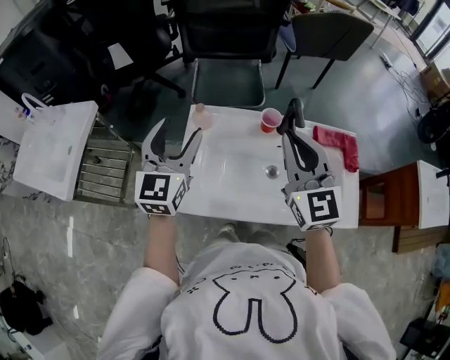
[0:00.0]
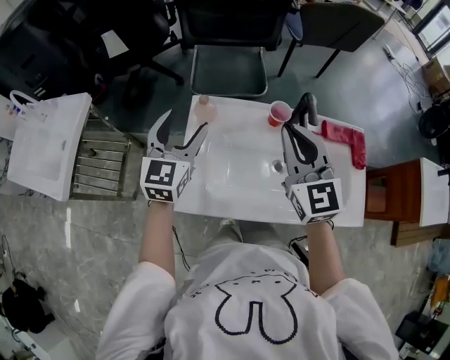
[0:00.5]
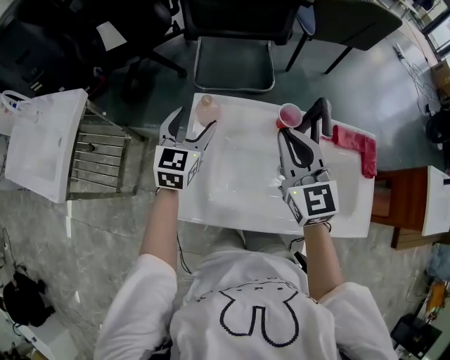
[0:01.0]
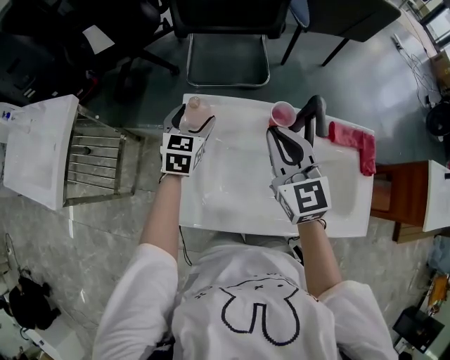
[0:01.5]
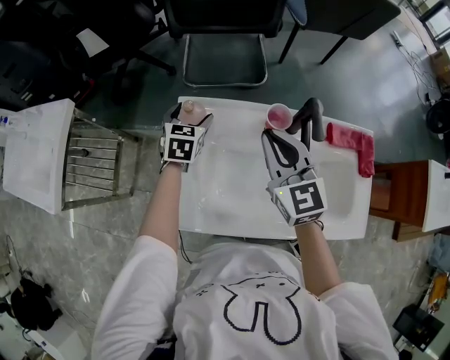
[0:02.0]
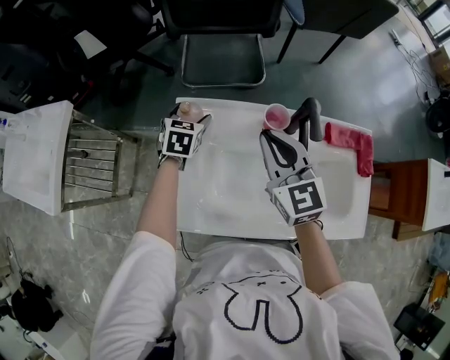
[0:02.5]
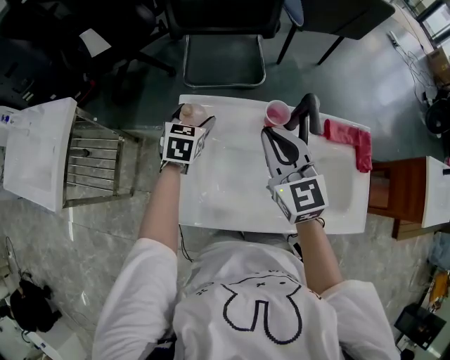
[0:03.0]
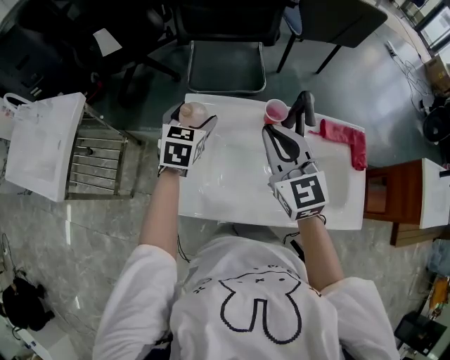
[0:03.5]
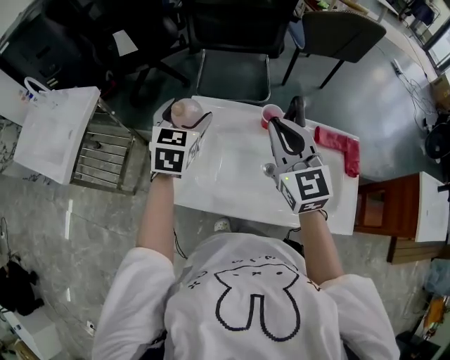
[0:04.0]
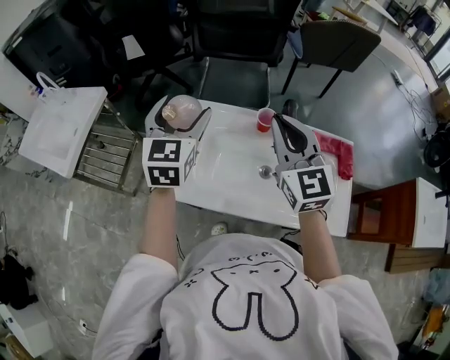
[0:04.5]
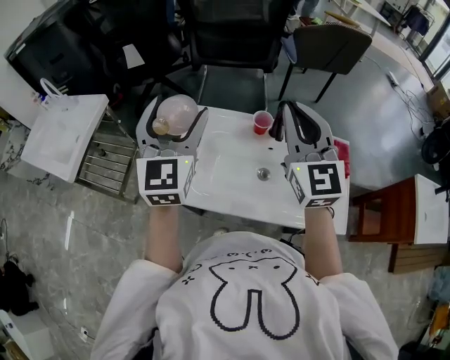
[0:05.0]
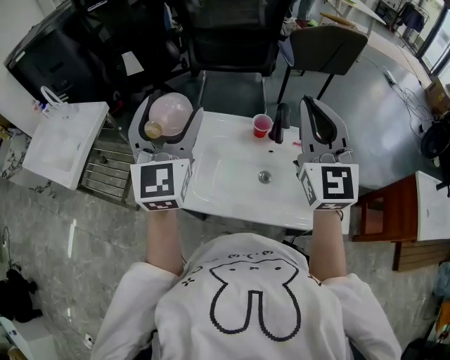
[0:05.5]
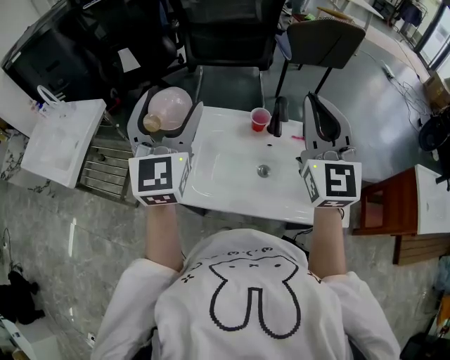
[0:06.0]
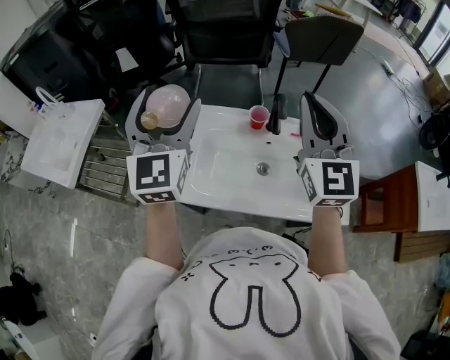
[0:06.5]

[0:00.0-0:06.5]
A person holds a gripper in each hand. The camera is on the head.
0:00.0 to 0:02.0: The right gripper goes approximately 15 cm downward and forward, while the left gripper goes roughly 30 cm downward and forward, and tilts its fingers roughly 30 degrees downward.
0:02.0 to 0:04.5: The right gripper is displaced upward and backward by some 15 cm. The left gripper shifts approximately 30 cm upward and backward, and swivels roughly 30 degrees.
0:04.5 to 0:06.5: The left gripper travels upward and backward by roughly 10 cm; the right gripper is displaced upward and to the right by some 10 cm.

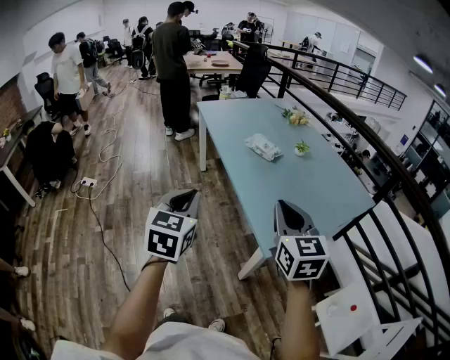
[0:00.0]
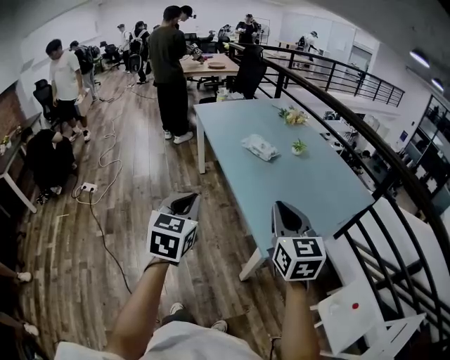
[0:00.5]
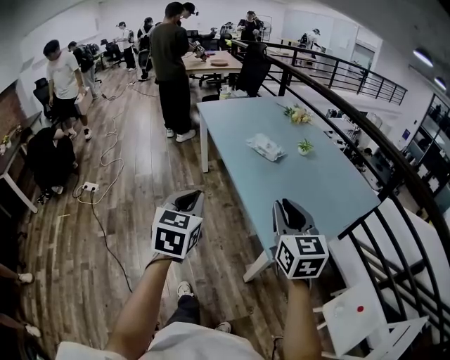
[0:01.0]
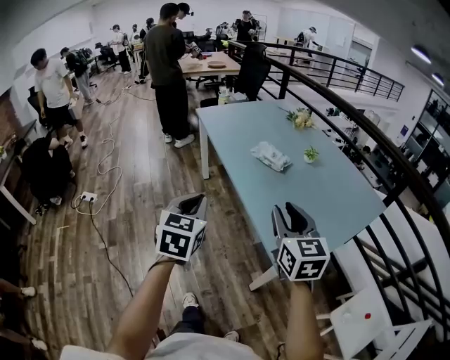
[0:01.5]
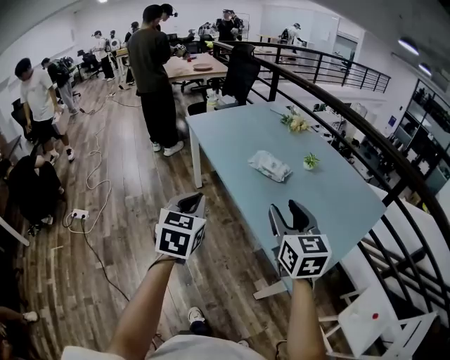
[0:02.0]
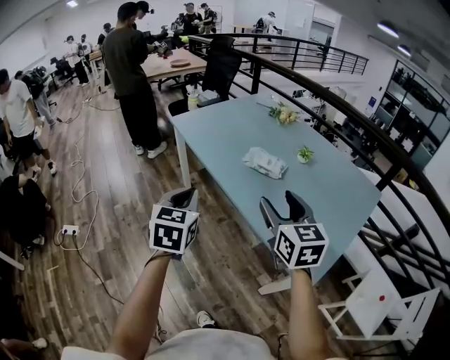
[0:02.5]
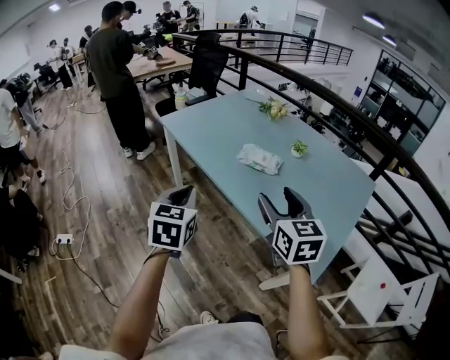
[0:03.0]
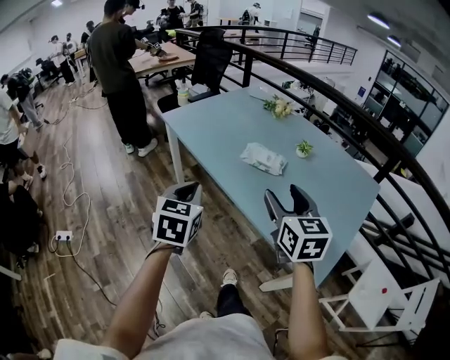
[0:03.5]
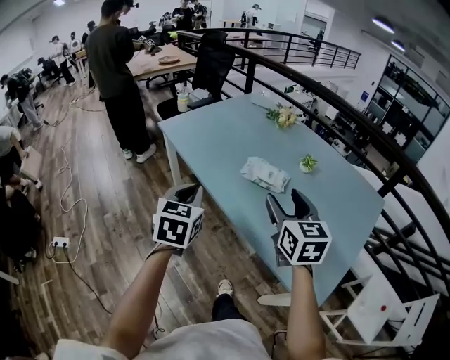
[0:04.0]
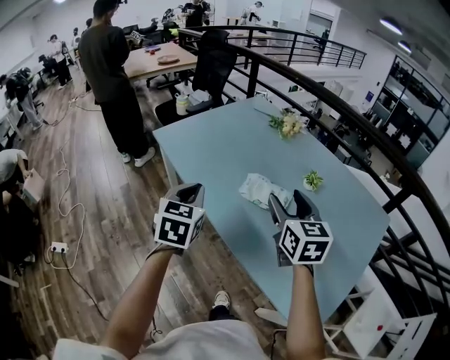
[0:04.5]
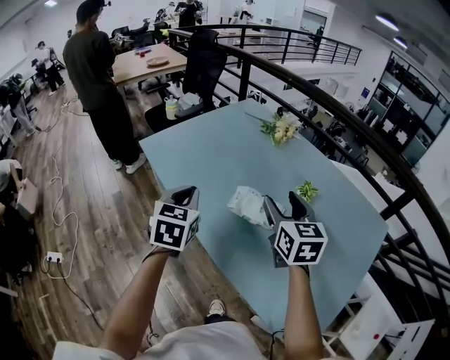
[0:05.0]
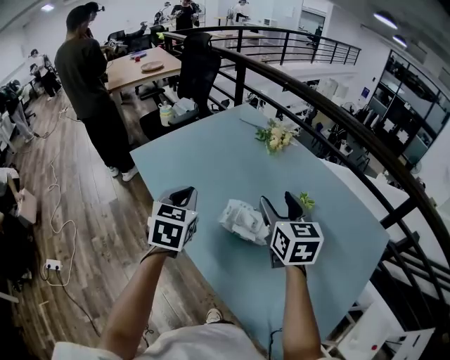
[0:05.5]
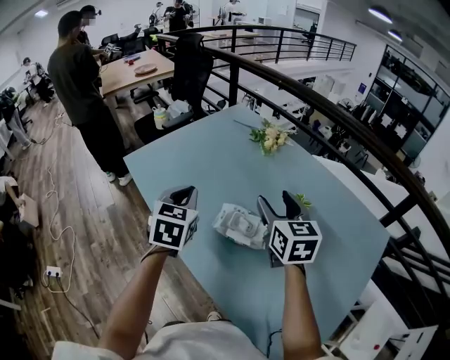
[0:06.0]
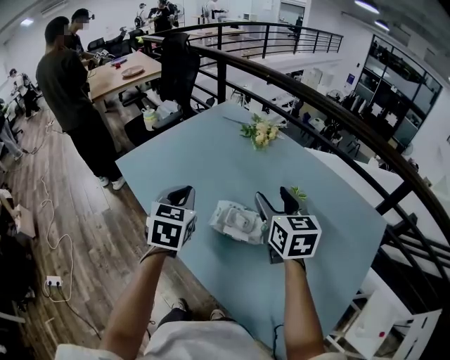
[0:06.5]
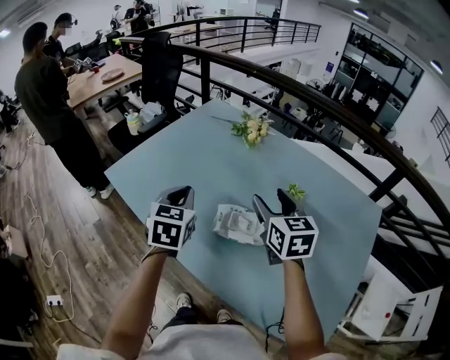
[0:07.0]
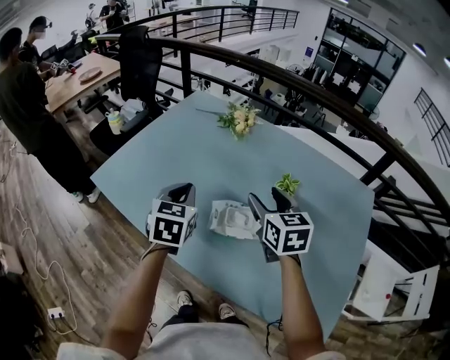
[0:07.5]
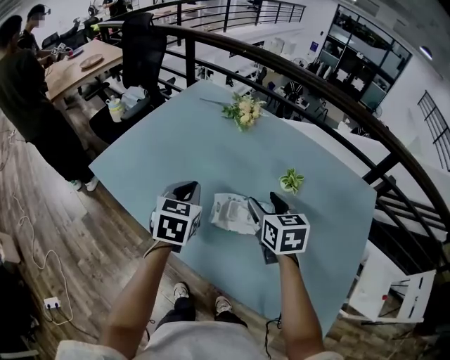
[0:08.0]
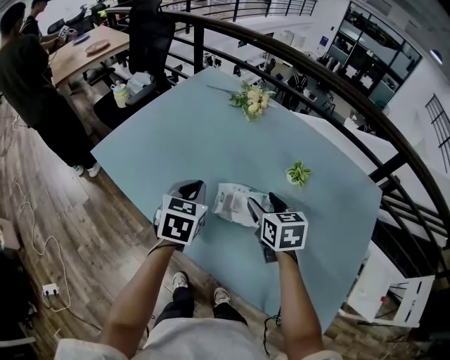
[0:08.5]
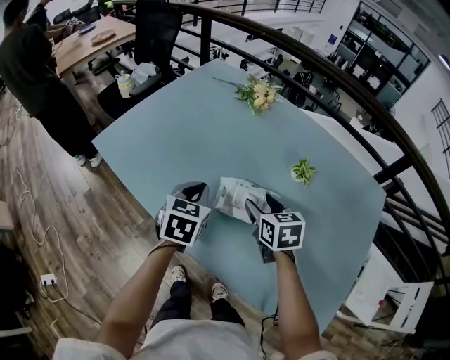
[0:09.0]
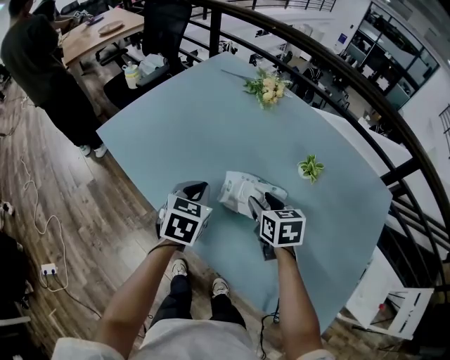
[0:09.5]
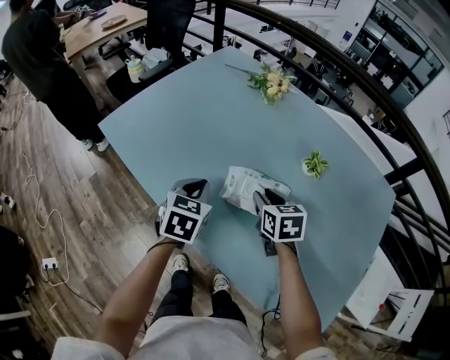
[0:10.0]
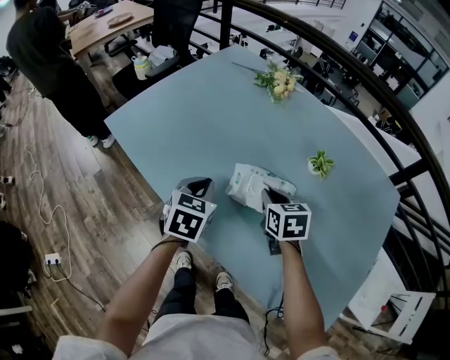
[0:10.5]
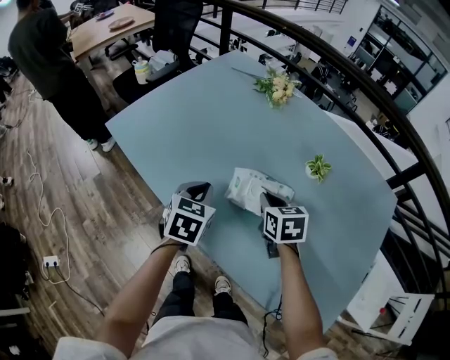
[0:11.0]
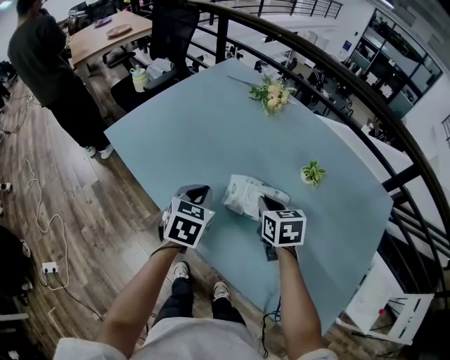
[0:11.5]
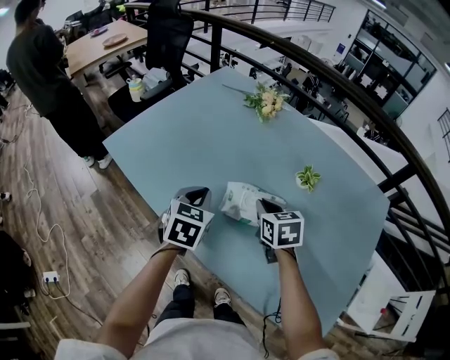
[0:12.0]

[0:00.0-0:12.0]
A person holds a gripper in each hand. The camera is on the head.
0:00.0 to 0:02.0: The grippers both shift forward by about 20 cm. The right gripper opens up.
0:02.0 to 0:04.0: Both grippers travel together forward, roughly 15 cm.
0:04.0 to 0:06.0: The two grippers go roughly 25 cm forward.
0:06.0 to 0:08.0: The right gripper shifts roughly 10 cm downward. Meanwhile the left gripper moves downward and forward, about 10 cm.
0:08.0 to 0:10.0: The two grippers go roughly 10 cm downward. The right gripper closes.
0:10.0 to 0:12.0: The right gripper closes.

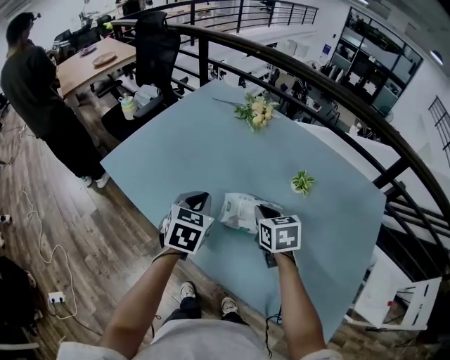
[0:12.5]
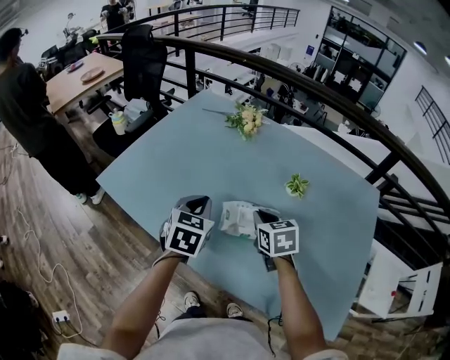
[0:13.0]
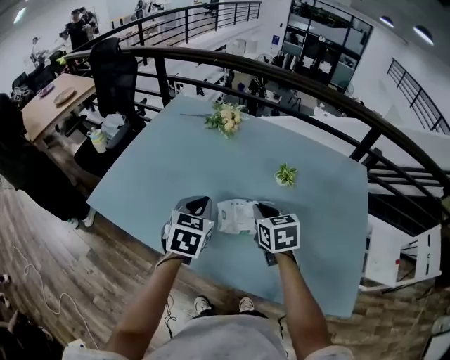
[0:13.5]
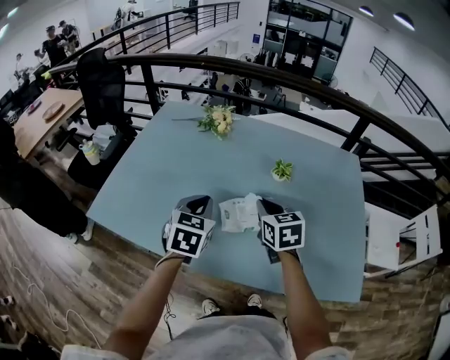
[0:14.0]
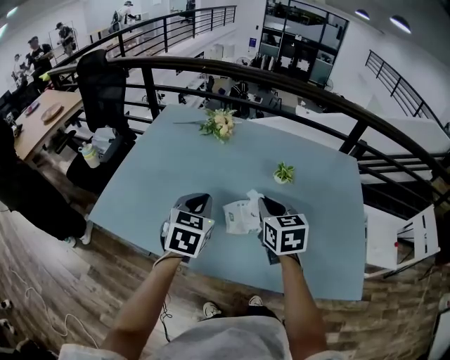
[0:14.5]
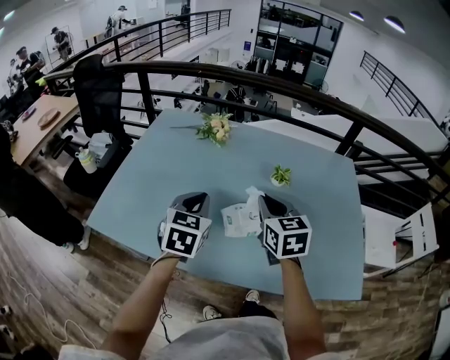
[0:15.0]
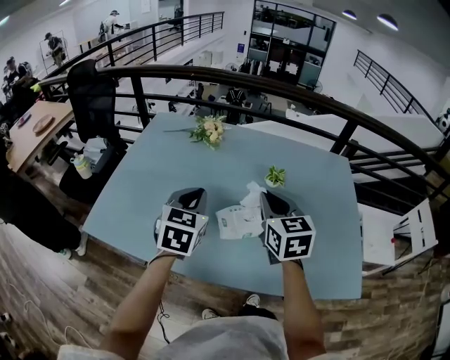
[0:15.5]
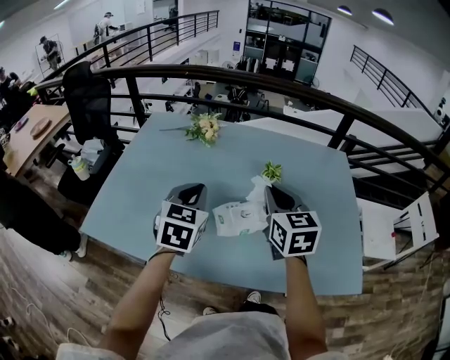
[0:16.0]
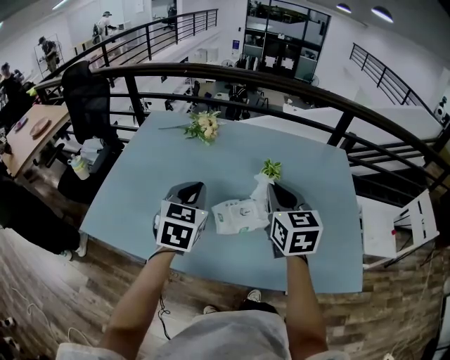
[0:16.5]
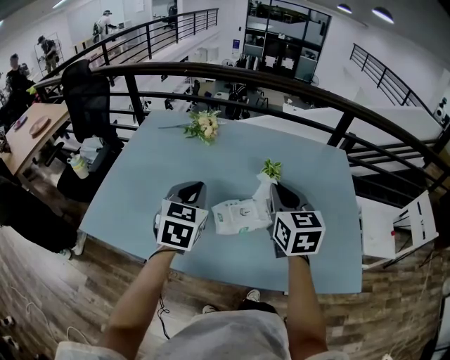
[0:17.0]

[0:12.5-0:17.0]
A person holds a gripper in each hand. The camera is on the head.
0:12.5 to 0:14.5: The right gripper is displaced upward by approximately 10 cm, and swivels approximately 30 degrees. Meanwhile the left gripper shifts by approximately 5 cm, and swivels roughly 20 degrees.
0:14.5 to 0:17.0: The right gripper travels upward and to the right by some 10 cm.

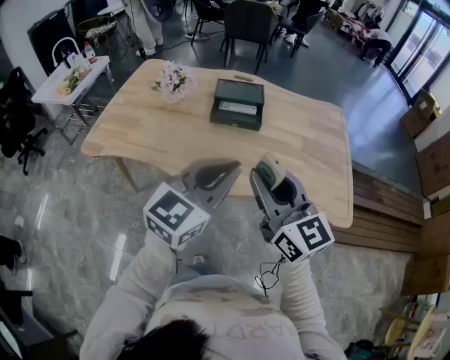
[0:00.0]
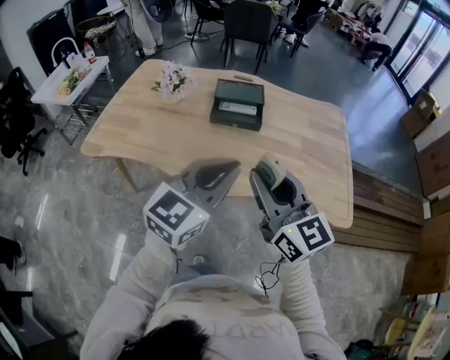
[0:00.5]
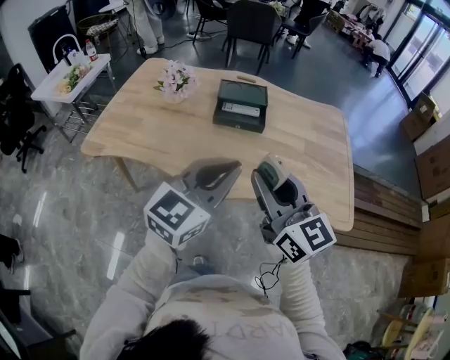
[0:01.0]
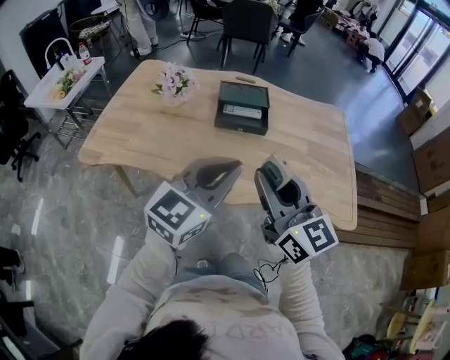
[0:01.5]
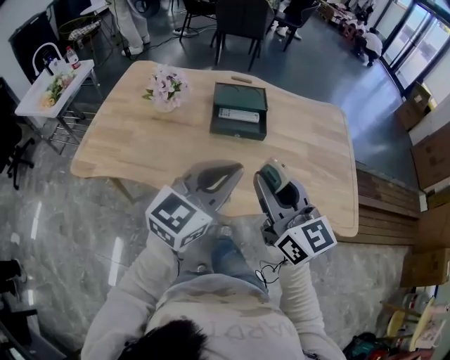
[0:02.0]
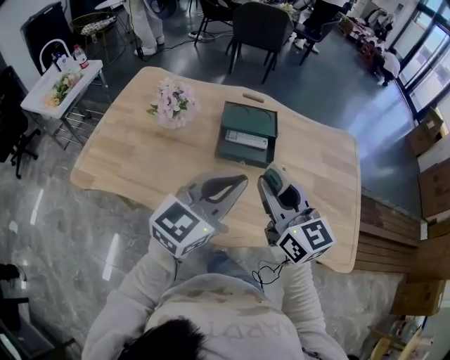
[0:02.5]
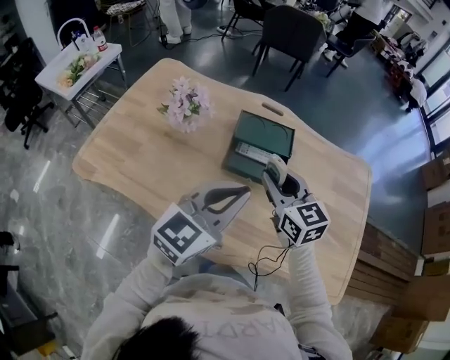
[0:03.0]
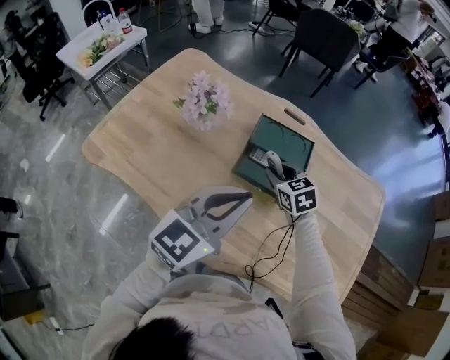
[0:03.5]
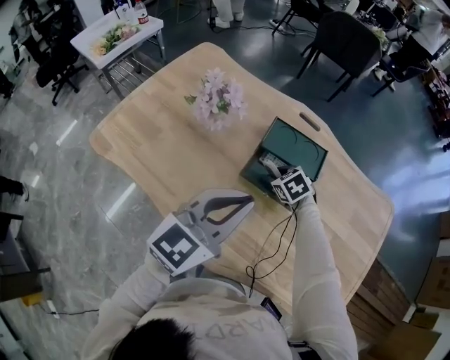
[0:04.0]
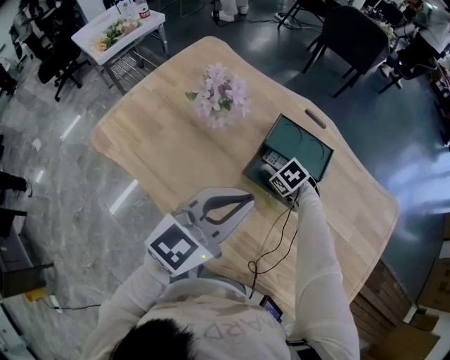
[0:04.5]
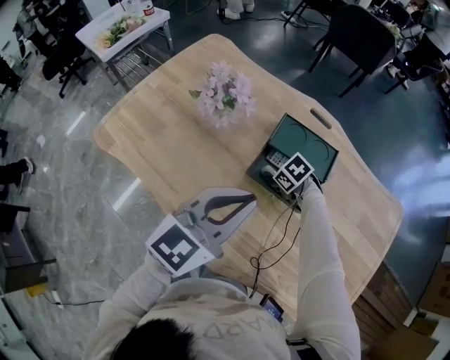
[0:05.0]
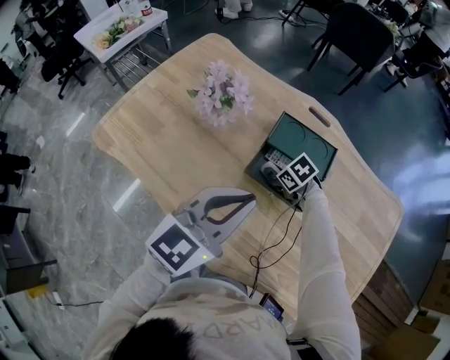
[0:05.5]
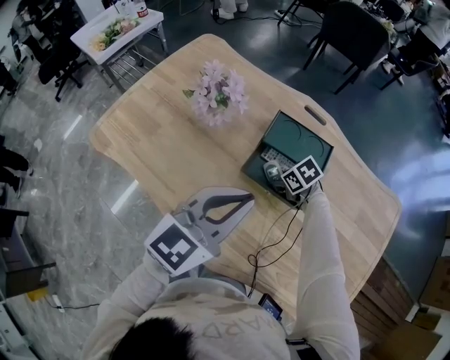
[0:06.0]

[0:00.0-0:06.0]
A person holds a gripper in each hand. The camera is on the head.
0:00.0 to 0:02.0: Both grippers move forward, approximately 10 cm.
0:02.0 to 0:04.0: The right gripper changes place by roughly 50 cm, and angles its fingers downward, by approximately 60 degrees, while the left gripper changes place by about 20 cm, and turns by approximately 20 degrees.
0:04.0 to 0:06.0: The right gripper shifts by about 5 cm, and changes its angle by approximately 20 degrees.
